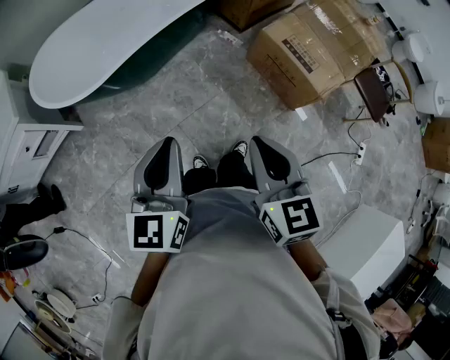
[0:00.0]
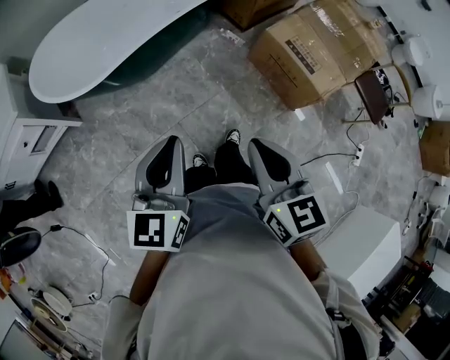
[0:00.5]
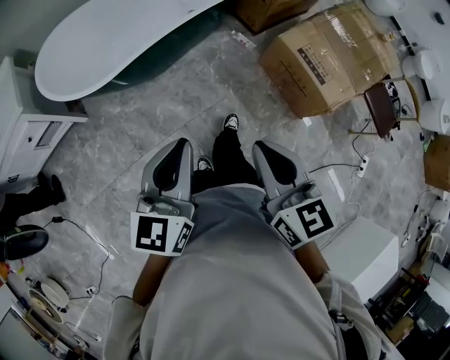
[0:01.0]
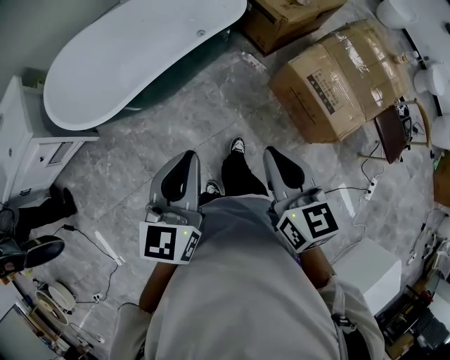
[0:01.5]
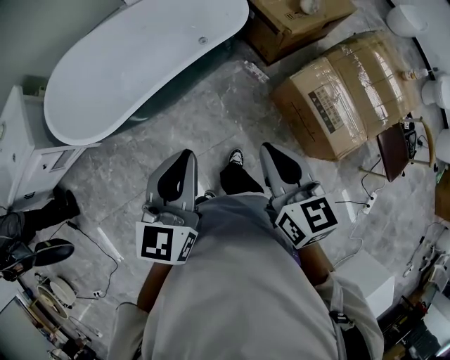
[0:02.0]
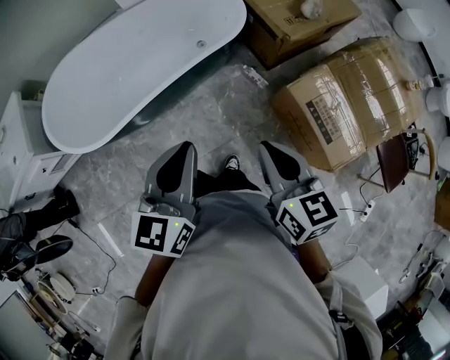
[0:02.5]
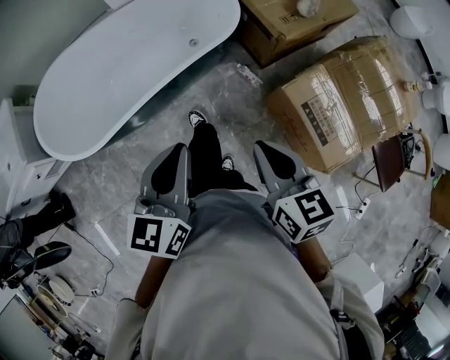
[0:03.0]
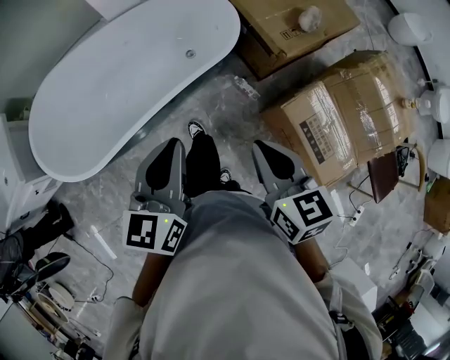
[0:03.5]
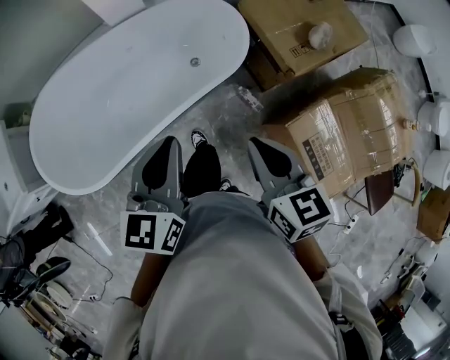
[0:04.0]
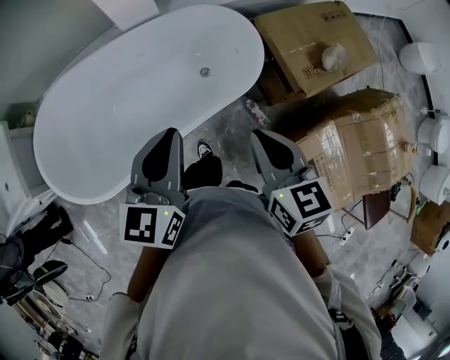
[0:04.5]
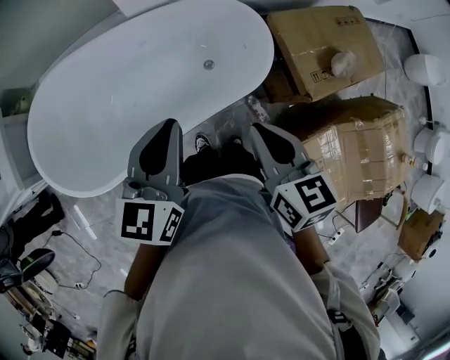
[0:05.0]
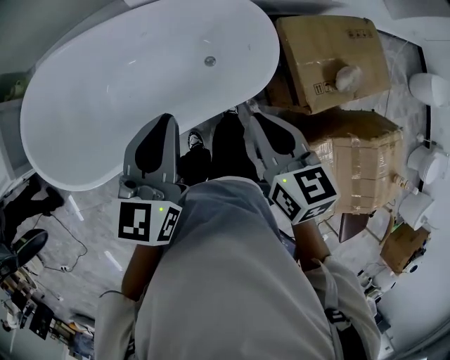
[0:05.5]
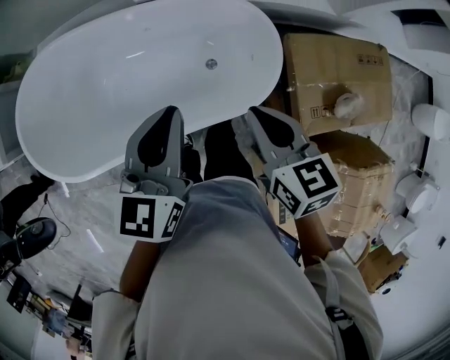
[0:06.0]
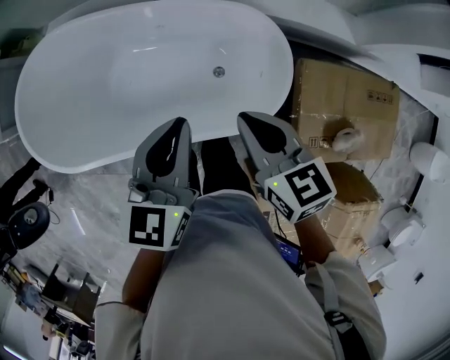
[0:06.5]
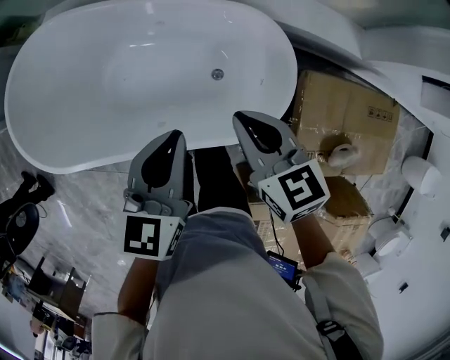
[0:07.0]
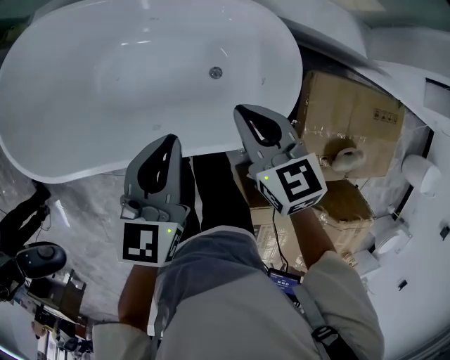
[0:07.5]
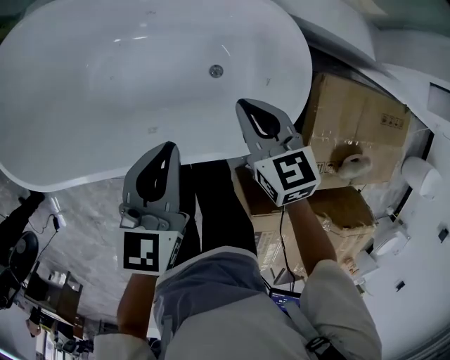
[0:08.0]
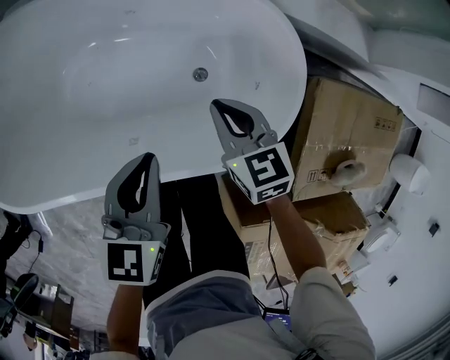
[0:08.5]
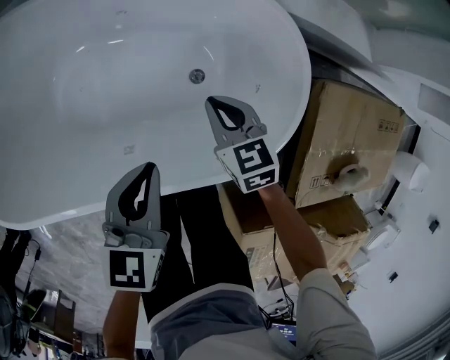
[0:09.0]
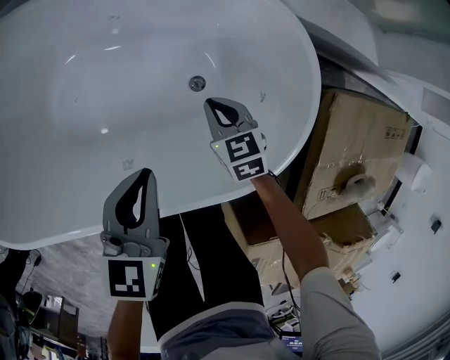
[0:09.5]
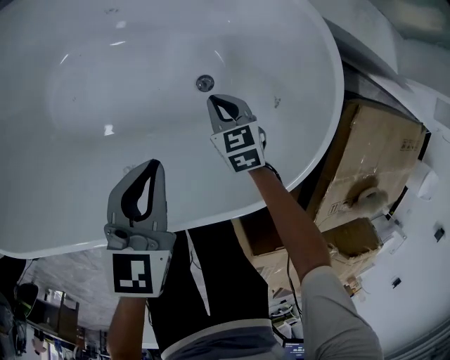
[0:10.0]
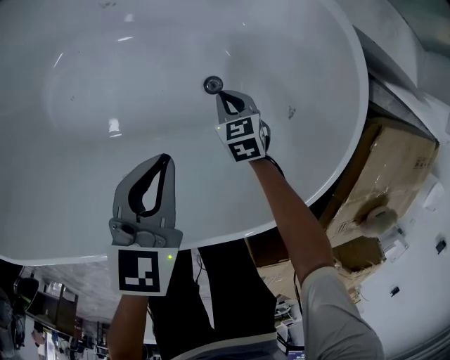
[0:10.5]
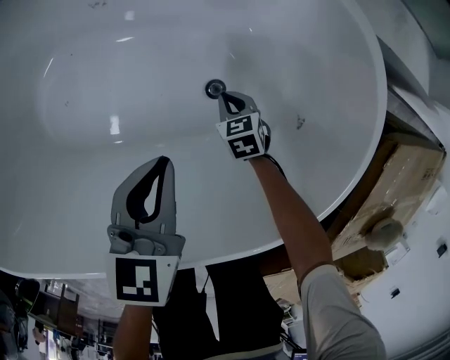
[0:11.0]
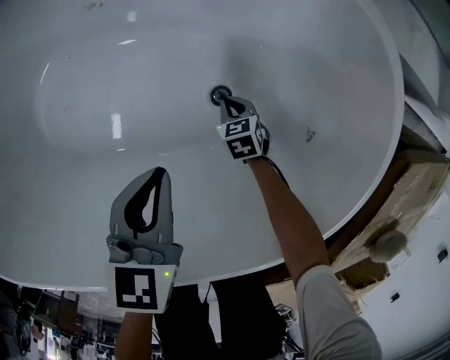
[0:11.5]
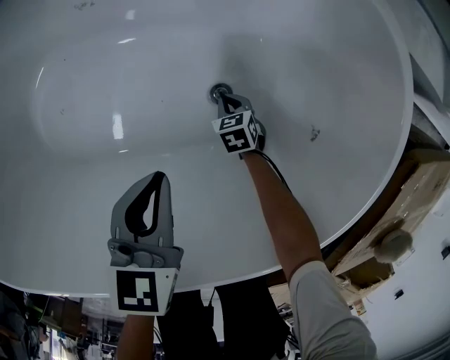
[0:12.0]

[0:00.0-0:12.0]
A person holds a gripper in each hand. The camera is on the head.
0:00.0 to 0:02.0: Both grippers travel together forward, roughly 30 cm.
0:02.0 to 0:04.0: Both grippers travel together forward, about 35 cm.
0:04.0 to 0:06.0: The grippers both shift forward by approximately 30 cm. The right gripper swivels about 20 degrees.
0:06.0 to 0:08.0: The right gripper heads downward and forward, covering about 30 cm; the left gripper moves downward, roughly 20 cm.
0:08.0 to 0:10.0: The left gripper moves downward, some 25 cm; the right gripper heads downward, covering approximately 35 cm.
0:10.0 to 0:12.0: The right gripper is displaced downward by some 30 cm, while the left gripper moves downward, approximately 15 cm.

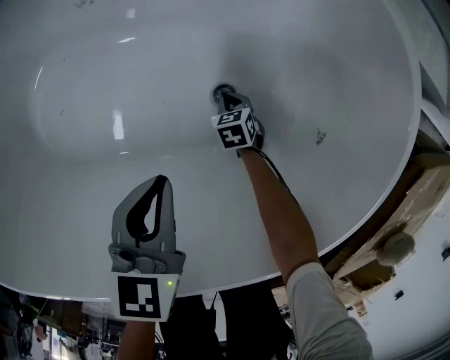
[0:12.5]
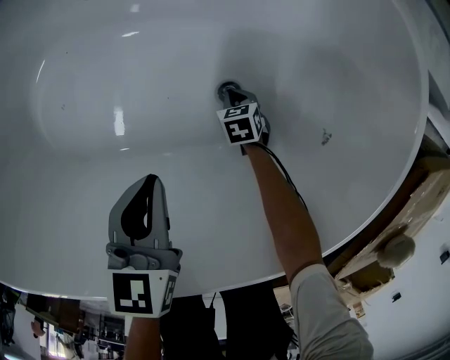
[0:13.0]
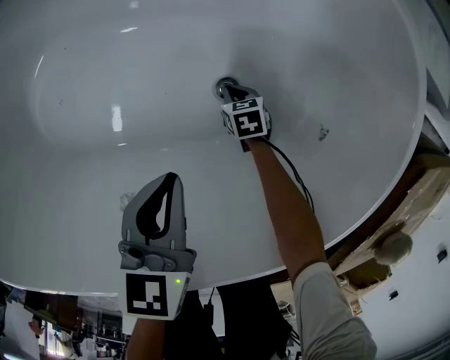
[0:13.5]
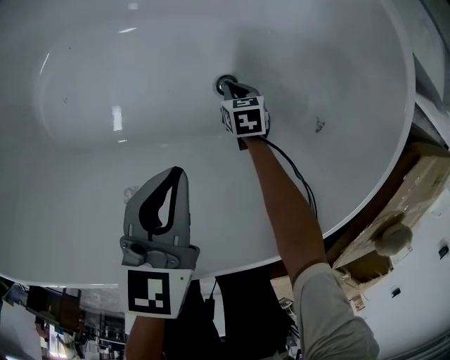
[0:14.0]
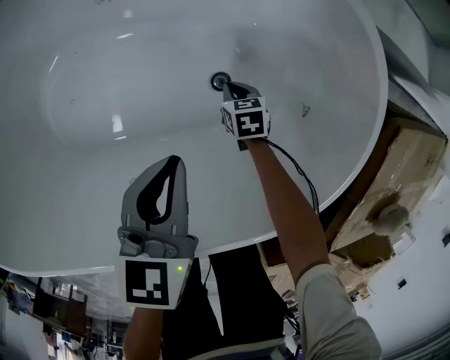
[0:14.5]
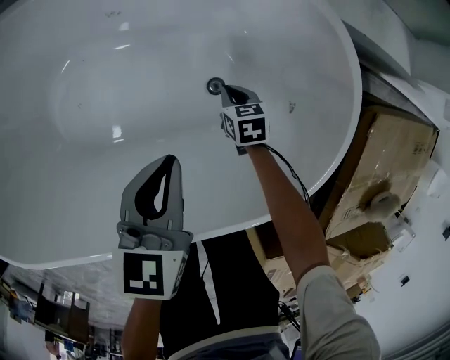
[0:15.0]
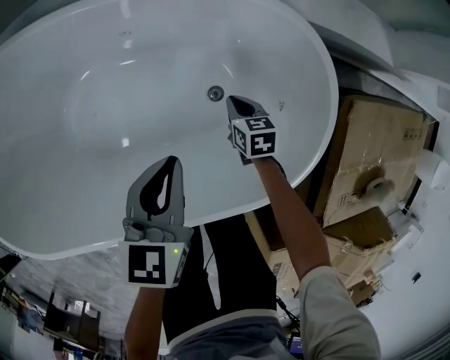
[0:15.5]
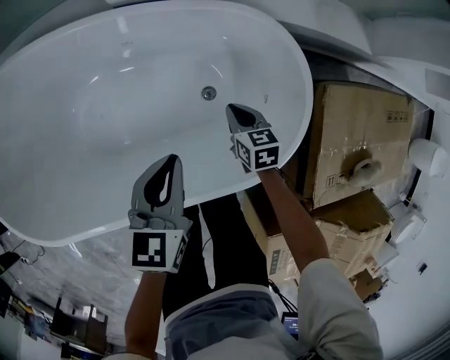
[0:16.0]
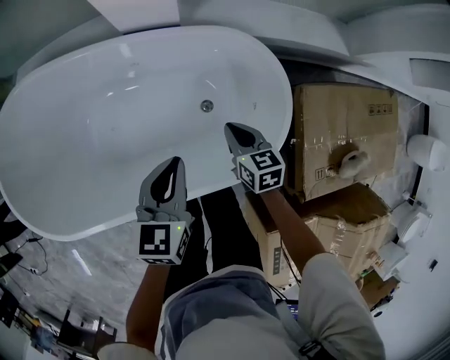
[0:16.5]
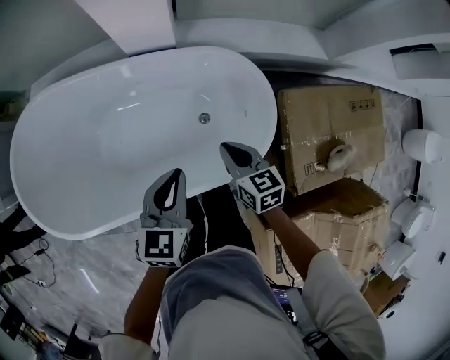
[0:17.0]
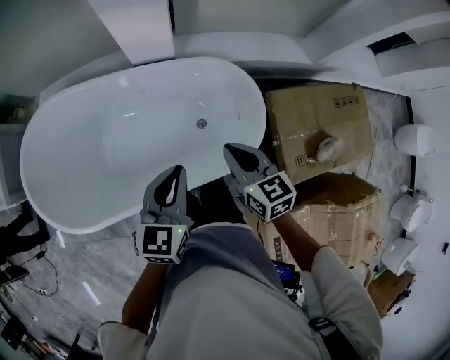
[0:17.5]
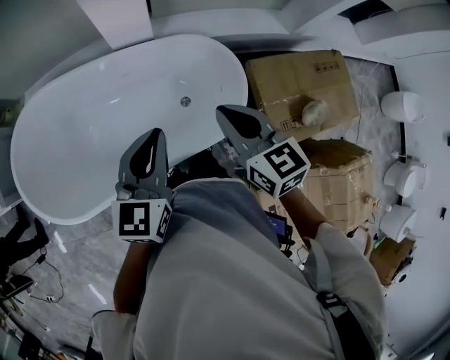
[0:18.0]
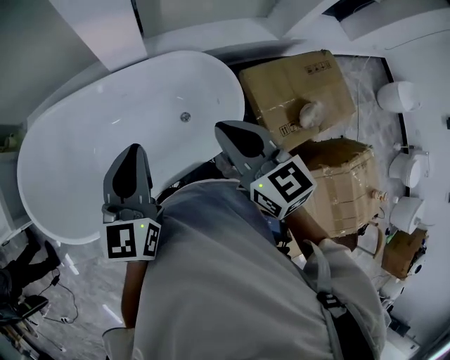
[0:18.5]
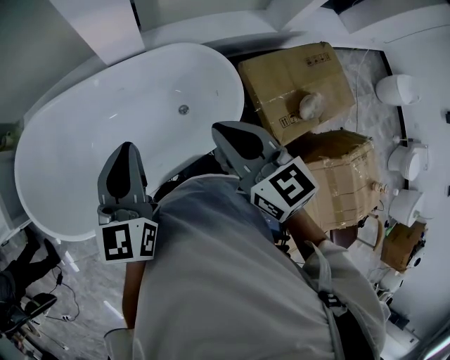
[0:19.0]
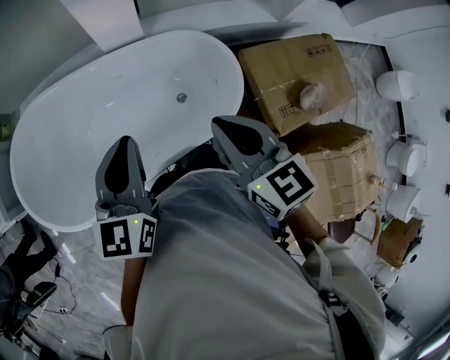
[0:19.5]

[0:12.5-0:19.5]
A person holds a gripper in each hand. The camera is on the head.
0:12.5 to 0:14.5: The grippers both shift upward by roughly 10 cm.
0:14.5 to 0:16.0: The grippers both shift upward by some 25 cm.
0:16.0 to 0:17.5: The right gripper moves upward, some 40 cm, and rotates approximately 20 degrees; the left gripper moves upward, approximately 30 cm.
0:17.5 to 0:19.5: The left gripper travels upward and to the left by roughly 10 cm, while the right gripper is displaced upward and backward by roughly 15 cm.

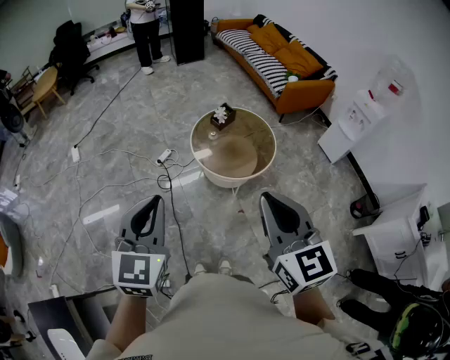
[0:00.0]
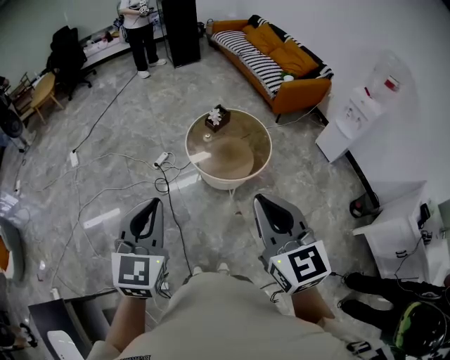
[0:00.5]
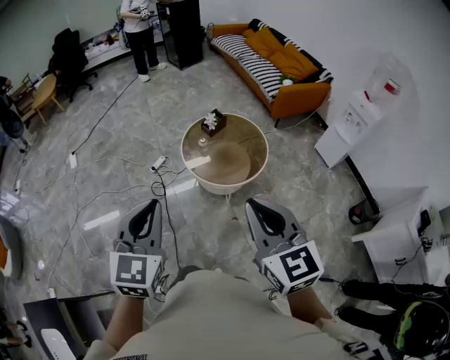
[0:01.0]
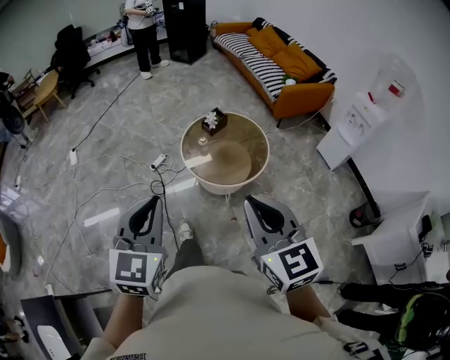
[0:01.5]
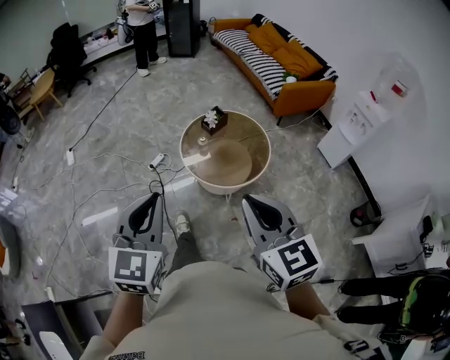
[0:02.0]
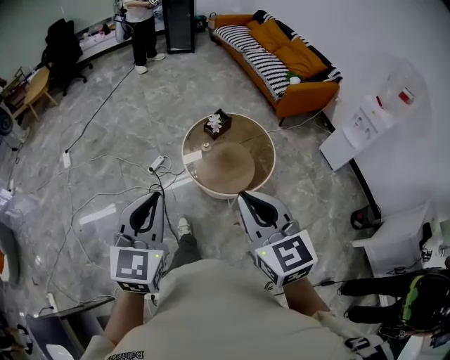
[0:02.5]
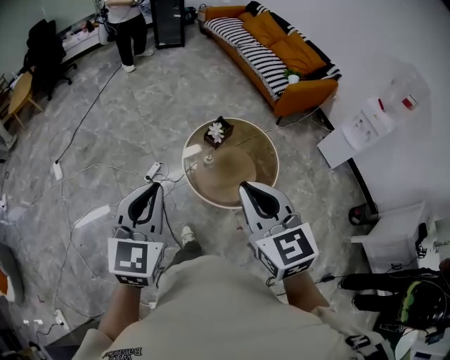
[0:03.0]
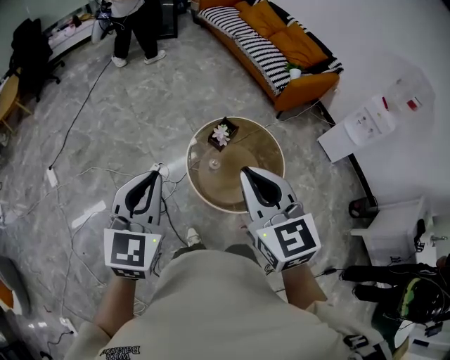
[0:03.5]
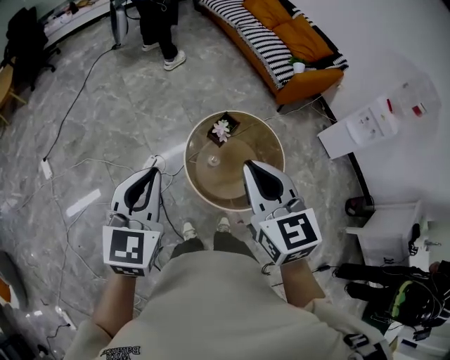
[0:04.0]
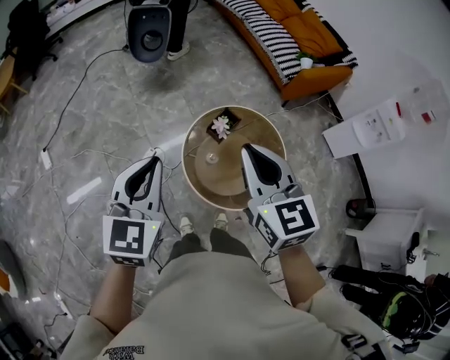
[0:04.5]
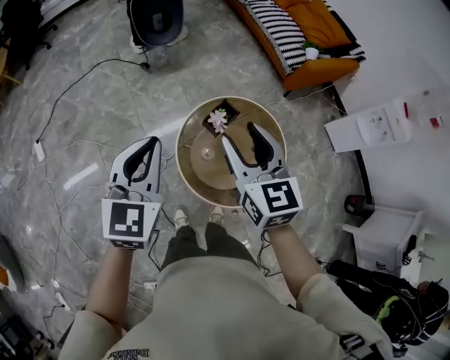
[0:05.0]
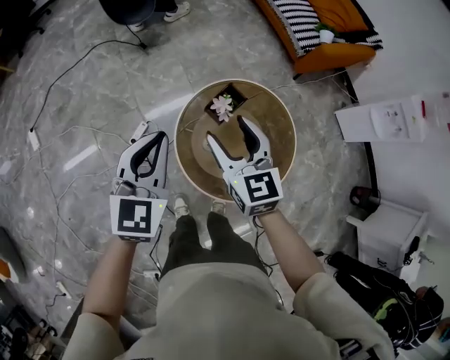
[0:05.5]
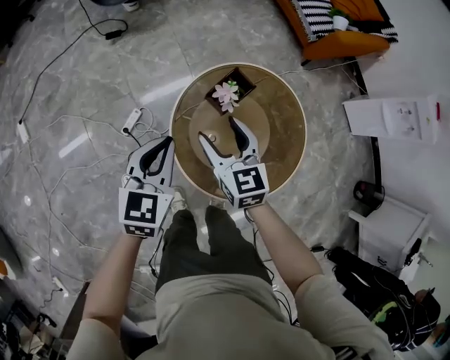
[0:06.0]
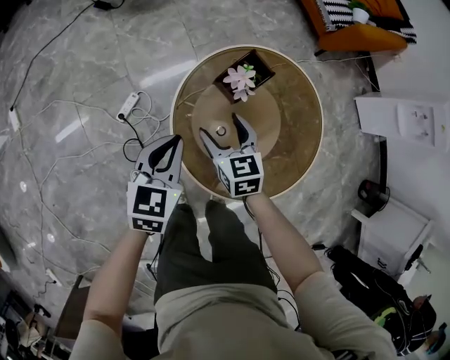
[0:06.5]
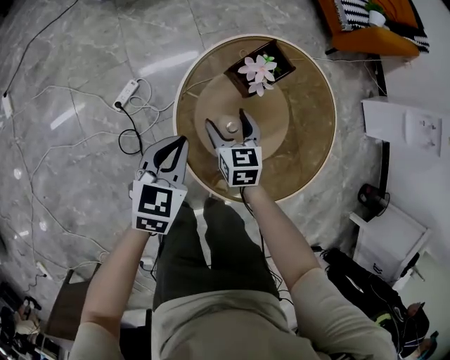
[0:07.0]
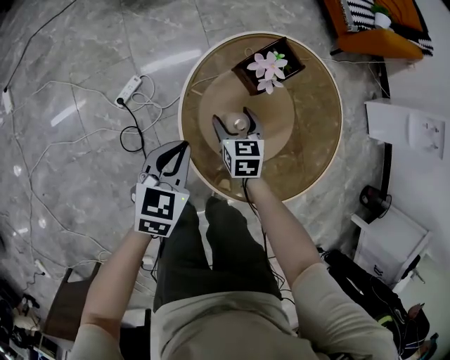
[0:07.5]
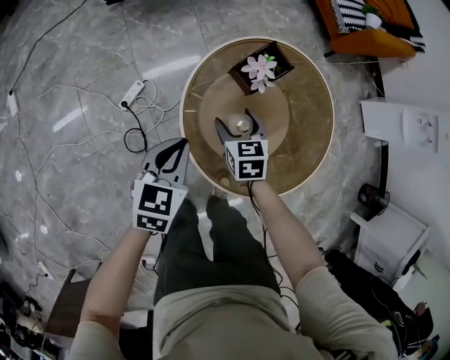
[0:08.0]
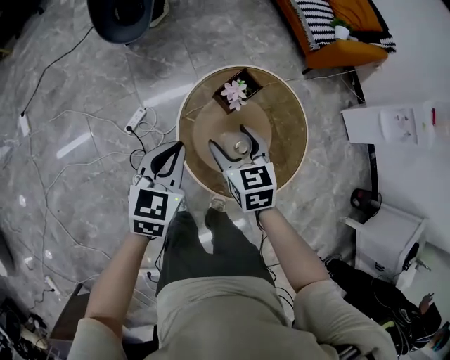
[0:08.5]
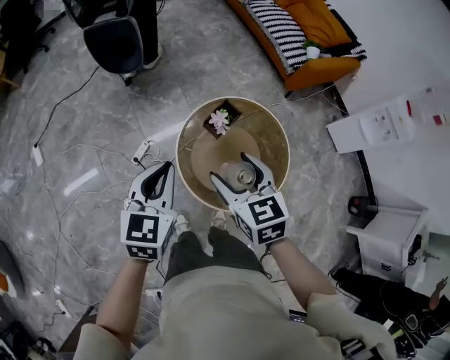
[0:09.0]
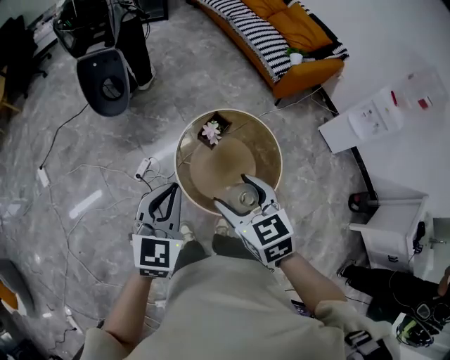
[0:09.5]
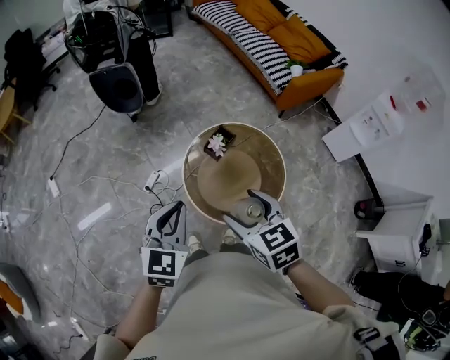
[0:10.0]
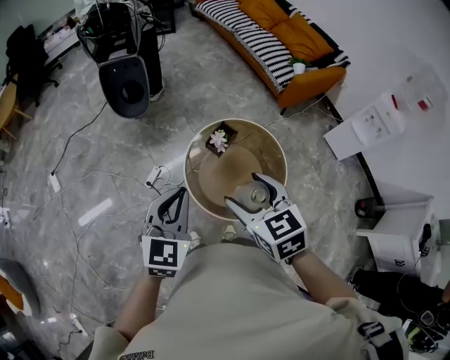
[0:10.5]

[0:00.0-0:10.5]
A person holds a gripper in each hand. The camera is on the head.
0:00.0 to 0:02.0: The left gripper goes roughly 10 cm to the right and forward. Meanwhile the right gripper heads downward, forward and to the right, covering roughly 10 cm.
0:02.0 to 0:04.0: The two grippers travel together, forward, some 40 cm.
0:04.0 to 0:06.5: The grippers both shift downward by some 50 cm. The right gripper opens its fingers.
0:06.5 to 0:08.5: The grippers both shift upward by roughly 15 cm.
0:08.5 to 0:10.5: The grippers both shift upward and backward by about 30 cm.
